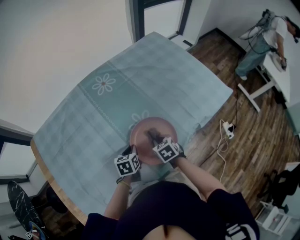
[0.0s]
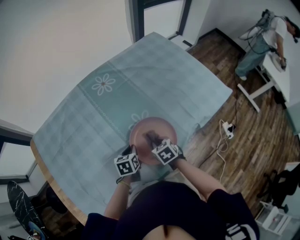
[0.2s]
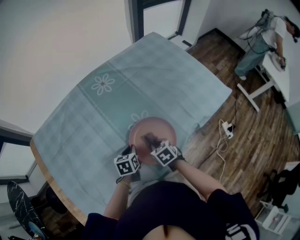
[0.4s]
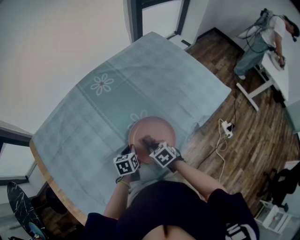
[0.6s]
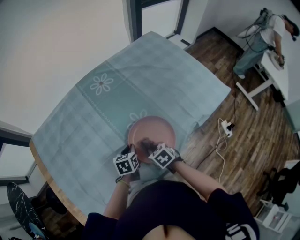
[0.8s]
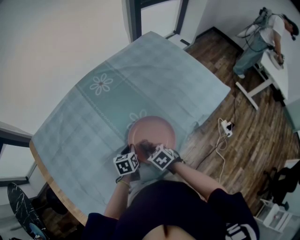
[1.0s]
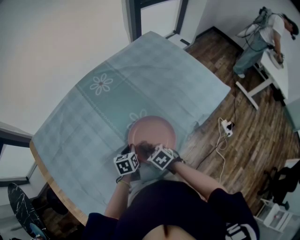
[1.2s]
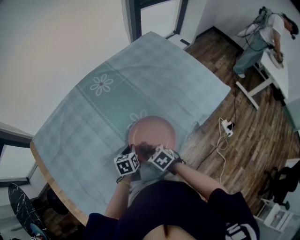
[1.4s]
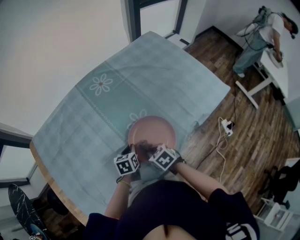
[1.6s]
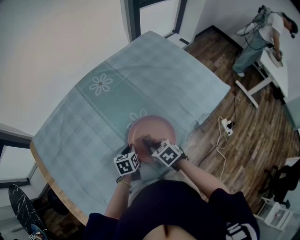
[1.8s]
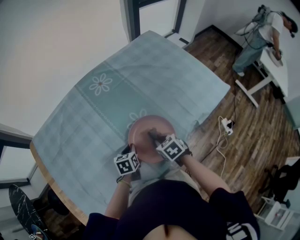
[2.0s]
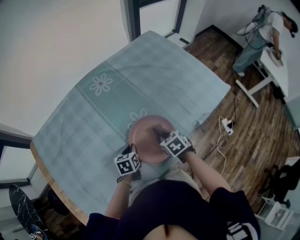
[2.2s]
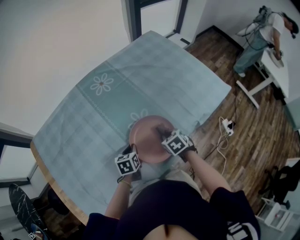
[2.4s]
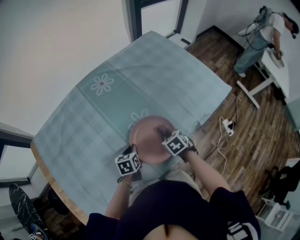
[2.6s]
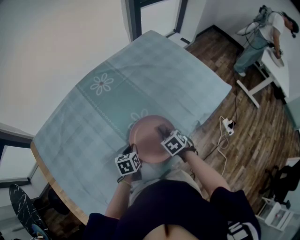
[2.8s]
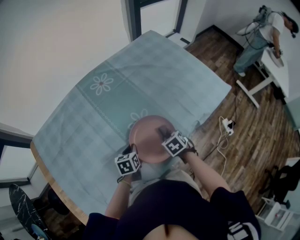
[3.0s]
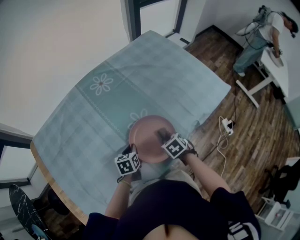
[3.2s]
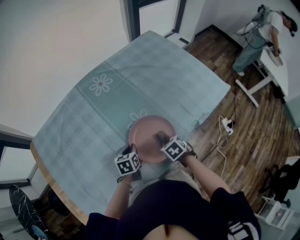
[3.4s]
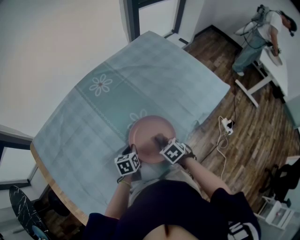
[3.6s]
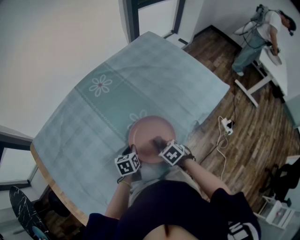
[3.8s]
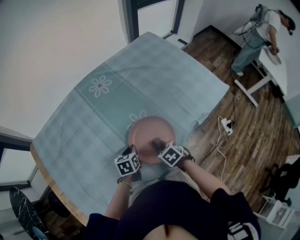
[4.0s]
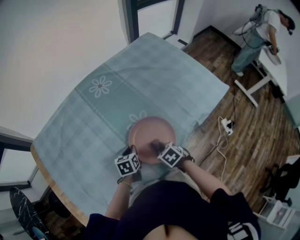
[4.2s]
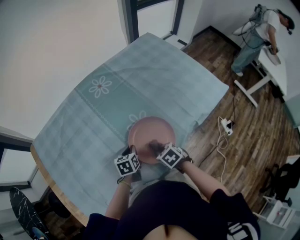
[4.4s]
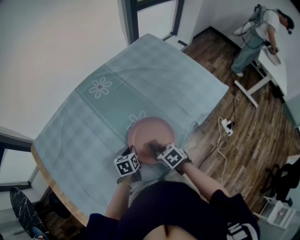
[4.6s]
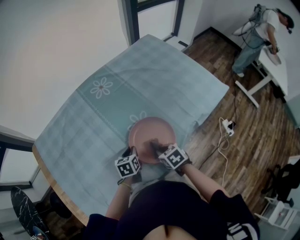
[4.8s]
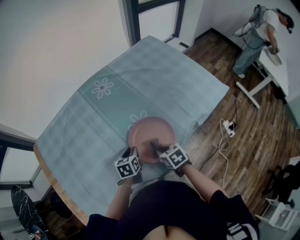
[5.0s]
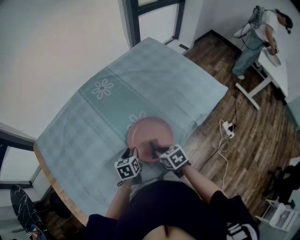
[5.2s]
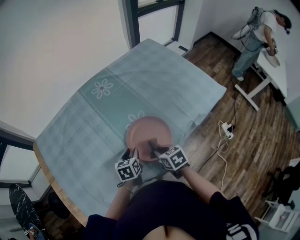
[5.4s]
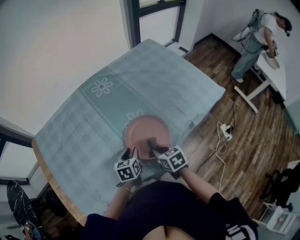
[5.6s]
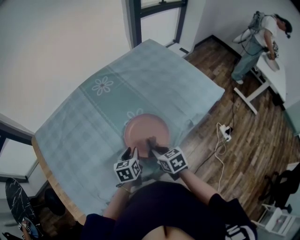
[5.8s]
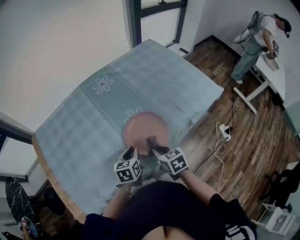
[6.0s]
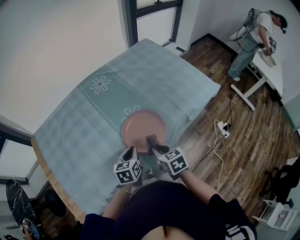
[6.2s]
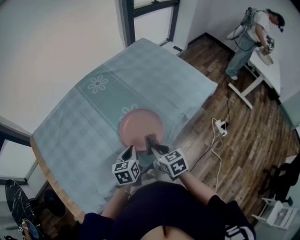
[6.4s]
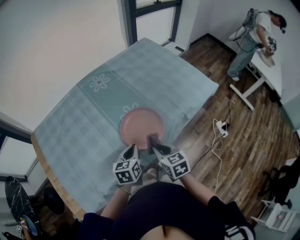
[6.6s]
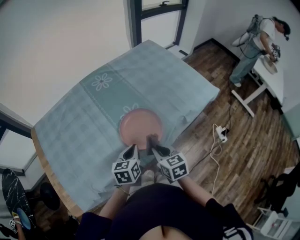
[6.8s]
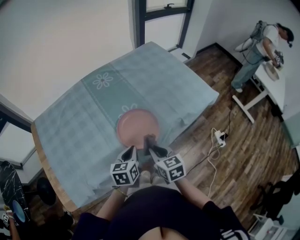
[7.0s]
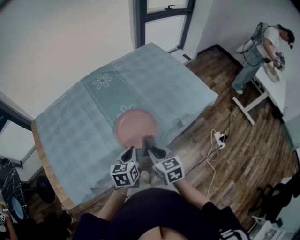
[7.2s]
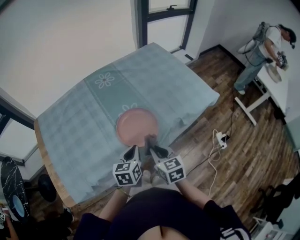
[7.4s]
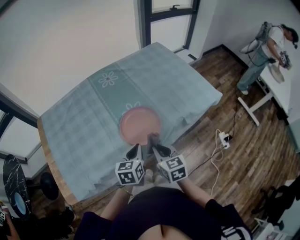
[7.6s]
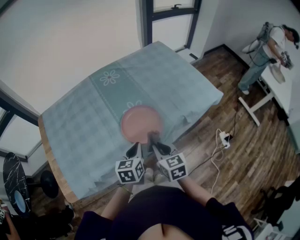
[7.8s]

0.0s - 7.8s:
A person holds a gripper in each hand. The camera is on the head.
0.0s - 1.6s: The right gripper moves to the left, roughly 5 cm.
1.6s - 3.2s: The right gripper moves approximately 10 cm.
3.2s - 4.6s: The right gripper moves about 5 cm.
4.6s - 6.2s: The right gripper moves upward, approximately 10 cm, and changes its angle by roughly 20 degrees; the left gripper is displaced upward and backward by roughly 15 cm.
6.2s - 7.8s: The right gripper travels upward by roughly 5 cm. The left gripper goes about 10 cm upward, backward and to the right.

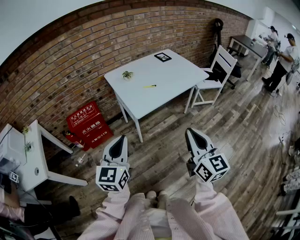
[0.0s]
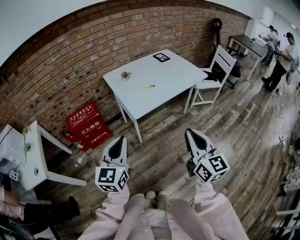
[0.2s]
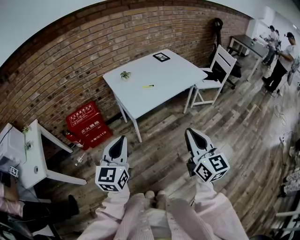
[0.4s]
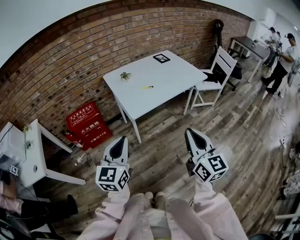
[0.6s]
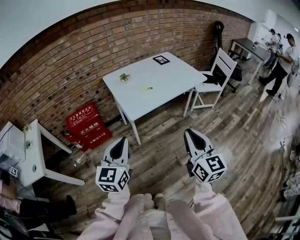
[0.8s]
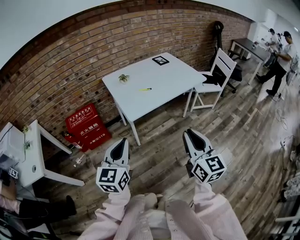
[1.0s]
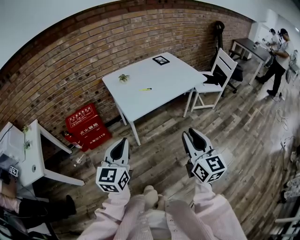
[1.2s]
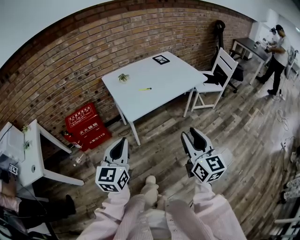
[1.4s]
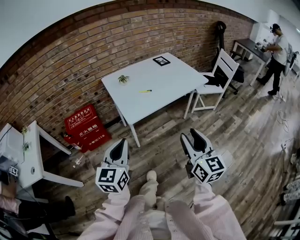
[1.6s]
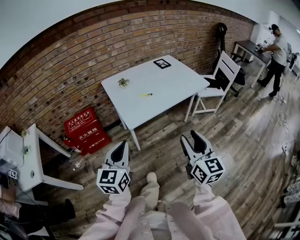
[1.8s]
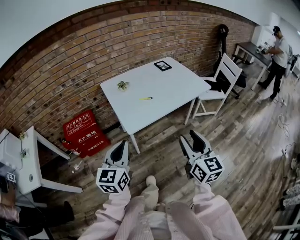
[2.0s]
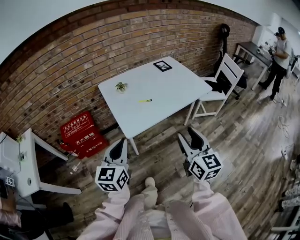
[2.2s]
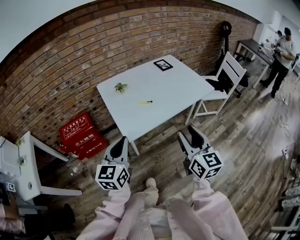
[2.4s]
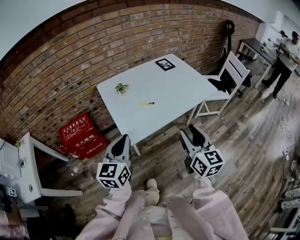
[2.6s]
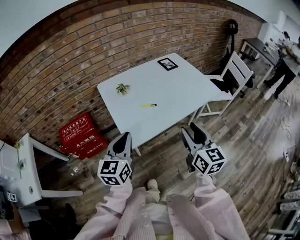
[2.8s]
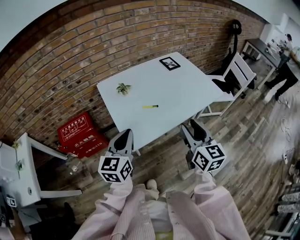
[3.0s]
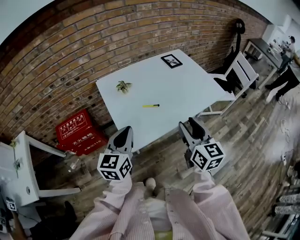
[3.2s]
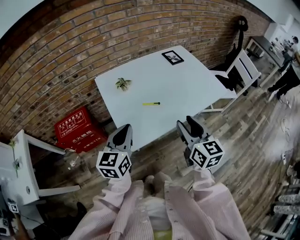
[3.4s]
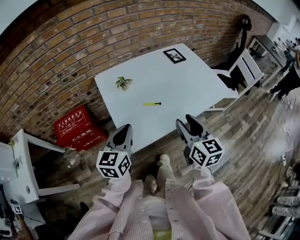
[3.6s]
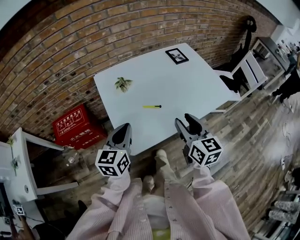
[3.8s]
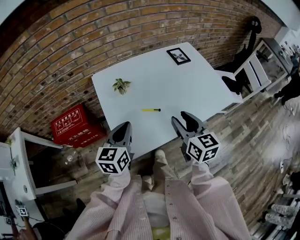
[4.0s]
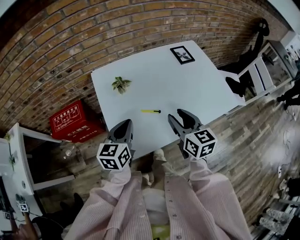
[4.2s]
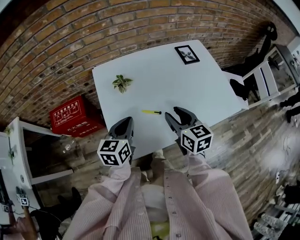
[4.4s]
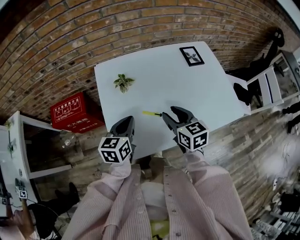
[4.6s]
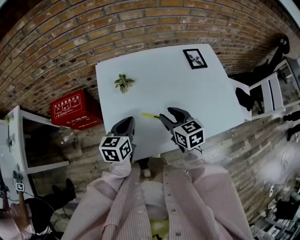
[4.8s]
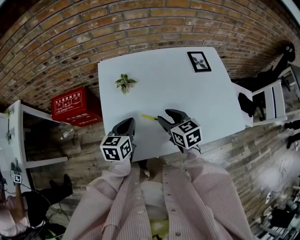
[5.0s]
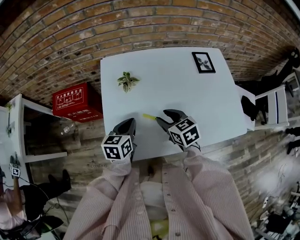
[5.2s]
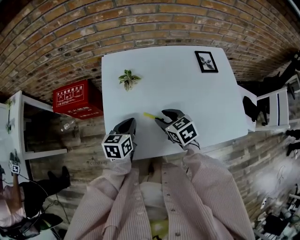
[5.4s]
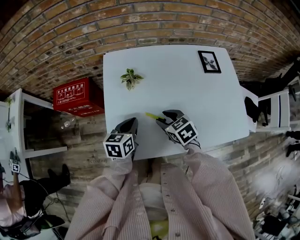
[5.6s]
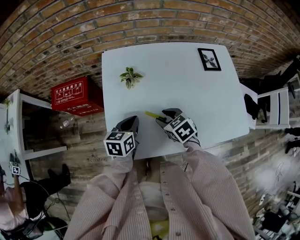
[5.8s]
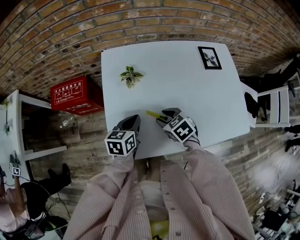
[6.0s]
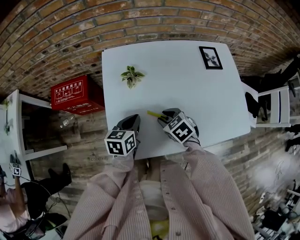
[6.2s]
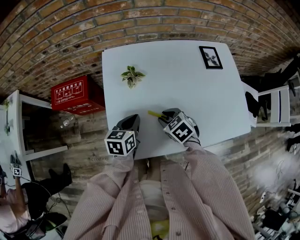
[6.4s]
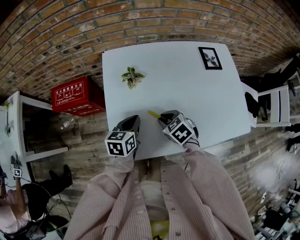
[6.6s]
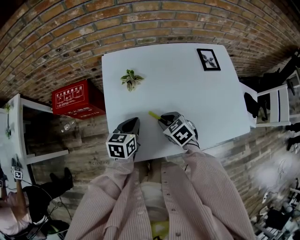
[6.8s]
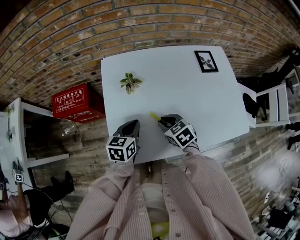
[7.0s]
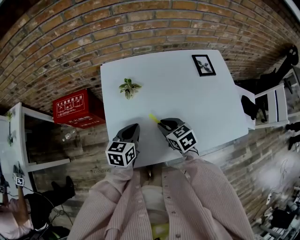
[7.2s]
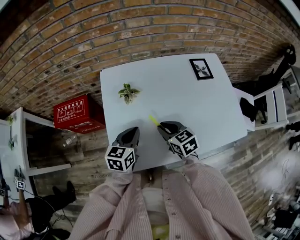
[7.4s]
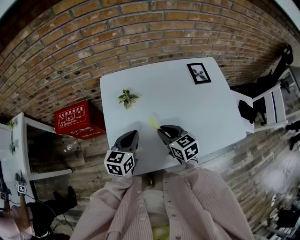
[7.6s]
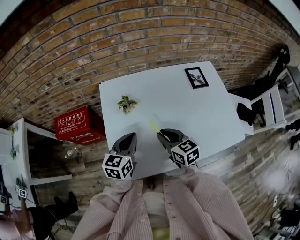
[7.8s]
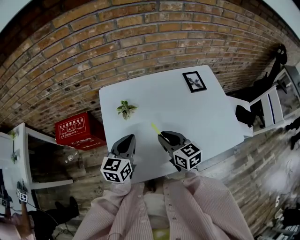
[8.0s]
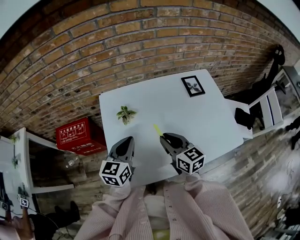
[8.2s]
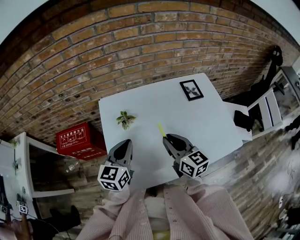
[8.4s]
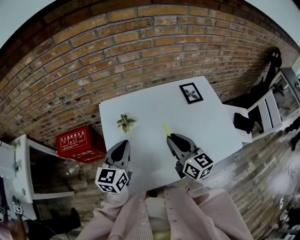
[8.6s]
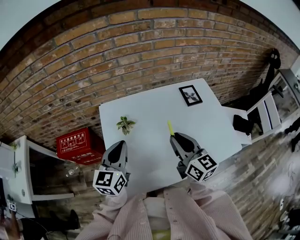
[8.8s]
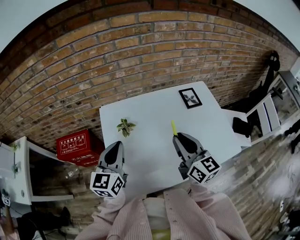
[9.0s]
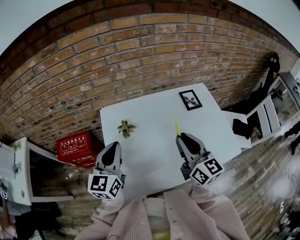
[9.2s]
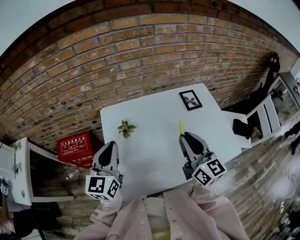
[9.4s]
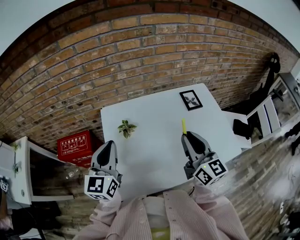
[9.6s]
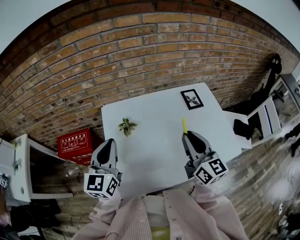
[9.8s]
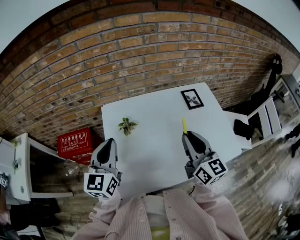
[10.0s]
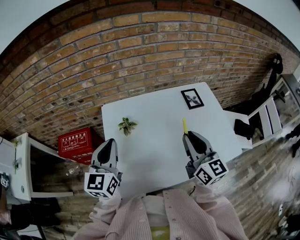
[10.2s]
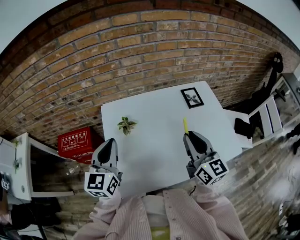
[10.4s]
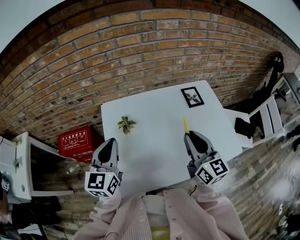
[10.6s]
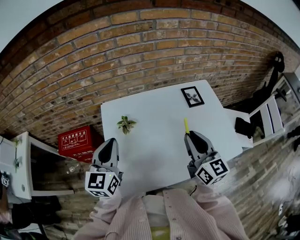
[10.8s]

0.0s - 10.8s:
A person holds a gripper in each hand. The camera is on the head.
0.0s - 1.6s: Both grippers travel together to the right, approximately 5 cm. The right gripper opens up.
1.6s - 3.0s: The two grippers go some 25 cm forward.
3.0s - 4.6s: Both grippers move forward and downward, some 25 cm. The left gripper swivels approximately 20 degrees. The right gripper rotates roughly 30 degrees.
4.6s - 6.2s: The right gripper is displaced downward by some 10 cm, and swivels approximately 40 degrees, while the left gripper heads downward, covering about 10 cm.
6.2s - 7.8s: The grippers both shift upward by approximately 10 cm. The right gripper angles its fingers upward, by approximately 30 degrees.
7.8s - 9.2s: The left gripper travels upward by about 15 cm, and rotates some 20 degrees, while the right gripper heads upward and to the right, covering roughly 20 cm, and swivels about 30 degrees.
9.2s - 10.8s: The grippers move only a little.

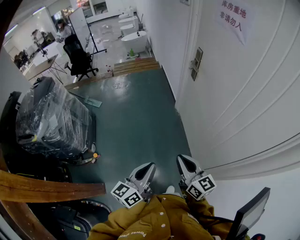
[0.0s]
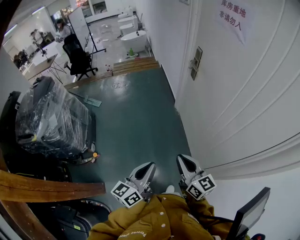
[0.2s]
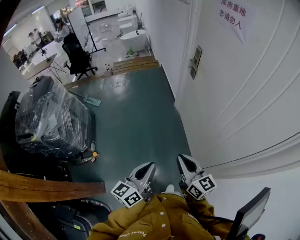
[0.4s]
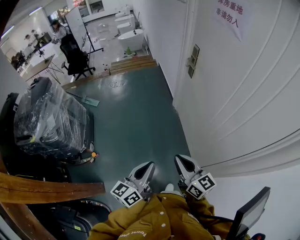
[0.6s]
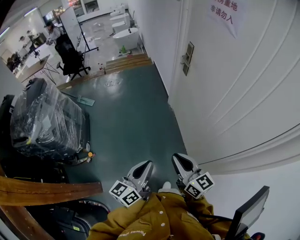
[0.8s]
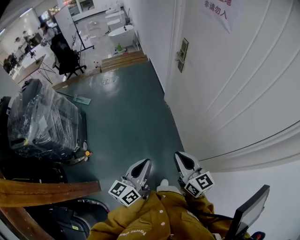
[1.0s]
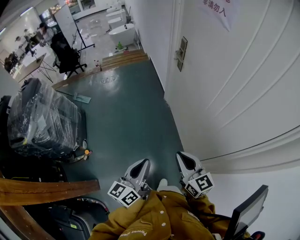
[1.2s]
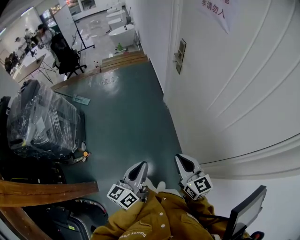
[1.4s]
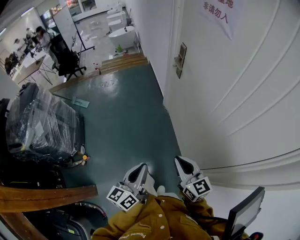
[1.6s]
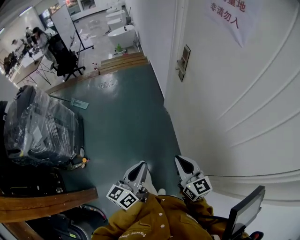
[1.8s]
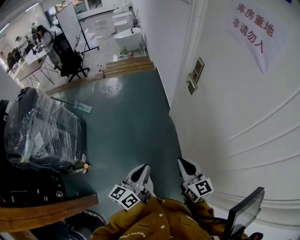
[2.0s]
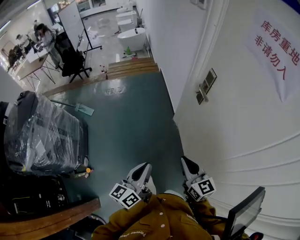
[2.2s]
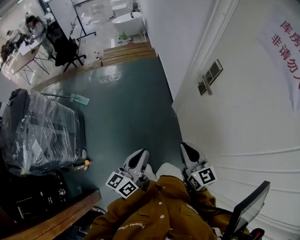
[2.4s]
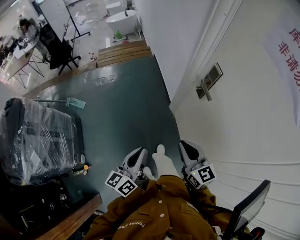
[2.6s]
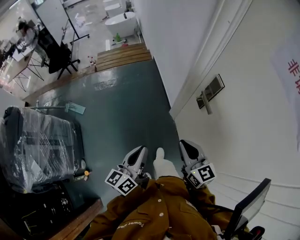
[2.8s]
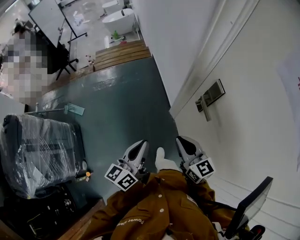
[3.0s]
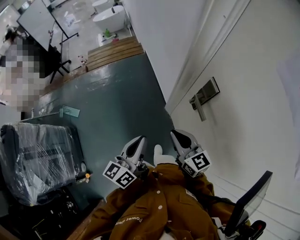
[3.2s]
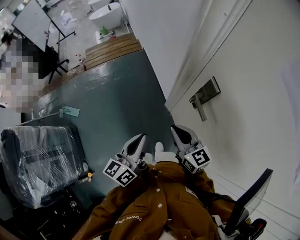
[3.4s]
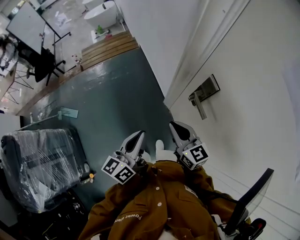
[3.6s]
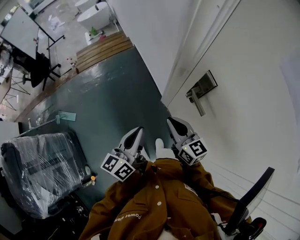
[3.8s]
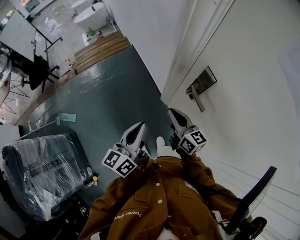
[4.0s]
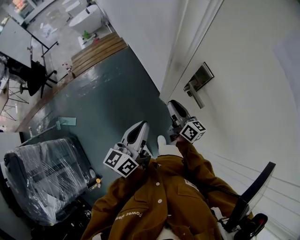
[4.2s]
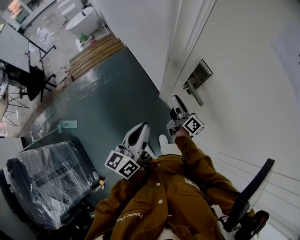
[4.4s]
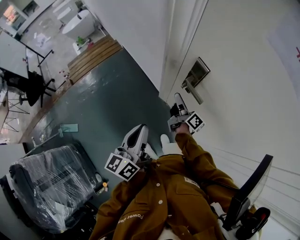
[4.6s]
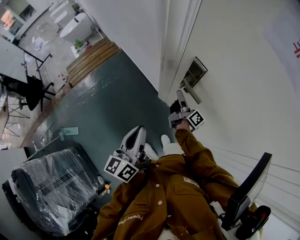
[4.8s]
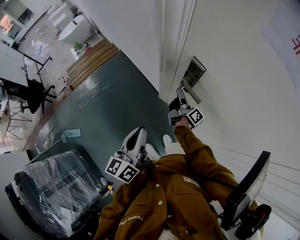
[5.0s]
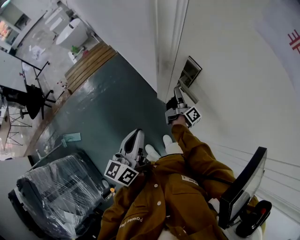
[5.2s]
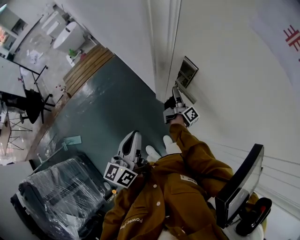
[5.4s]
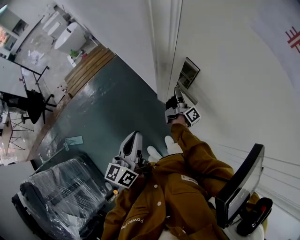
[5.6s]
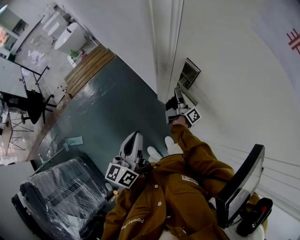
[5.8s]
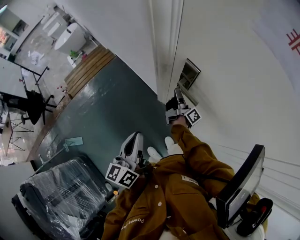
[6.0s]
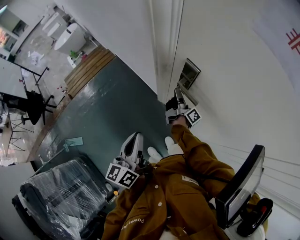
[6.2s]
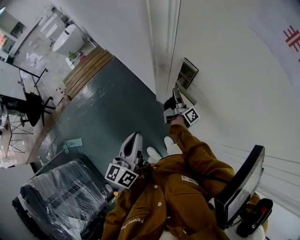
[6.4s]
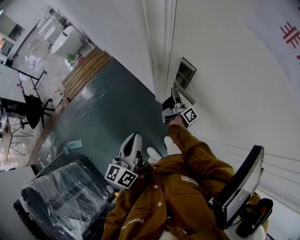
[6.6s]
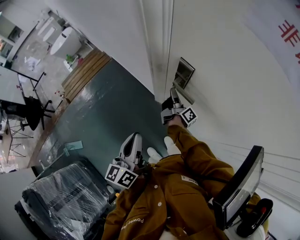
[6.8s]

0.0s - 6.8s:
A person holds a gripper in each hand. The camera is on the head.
0.0s - 1.4s: The two grippers go about 5 cm to the right.
1.4s - 2.8s: Both grippers are carried forward, some 50 cm.
2.8s - 4.0s: The two grippers go some 20 cm forward. The right gripper swivels some 20 degrees.
4.0s - 5.4s: The right gripper travels forward, downward and to the right by approximately 20 cm, twists about 60 degrees clockwise, seen from behind, and opens up.
5.4s - 6.8s: Both grippers stay about where they are.
